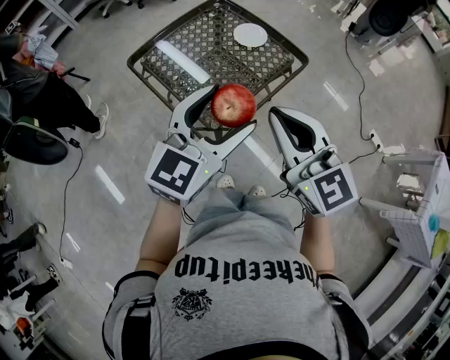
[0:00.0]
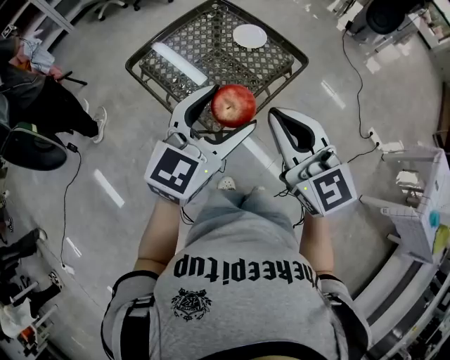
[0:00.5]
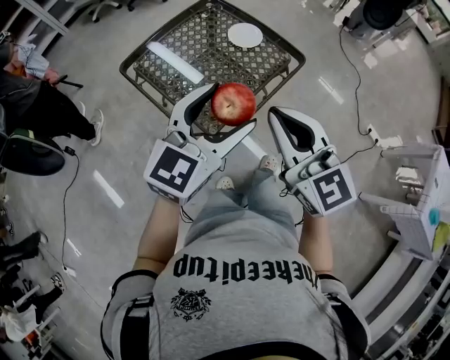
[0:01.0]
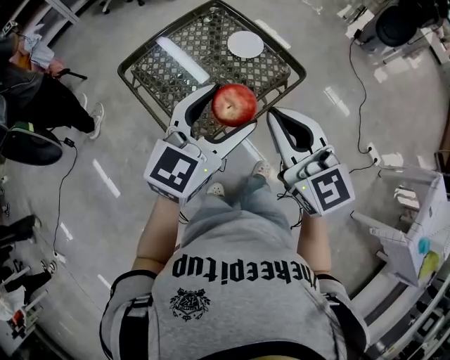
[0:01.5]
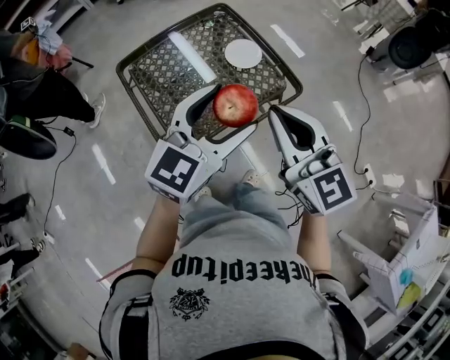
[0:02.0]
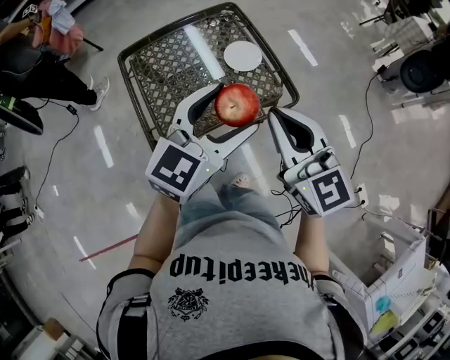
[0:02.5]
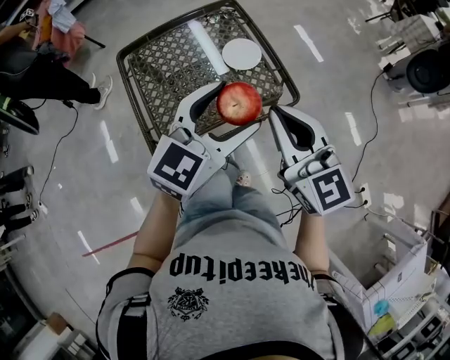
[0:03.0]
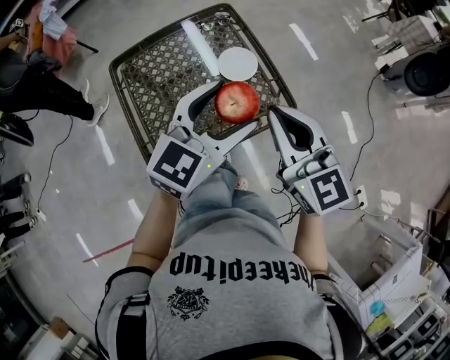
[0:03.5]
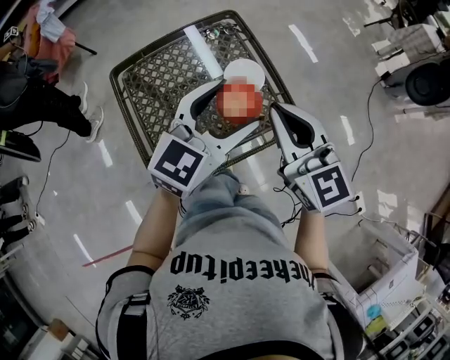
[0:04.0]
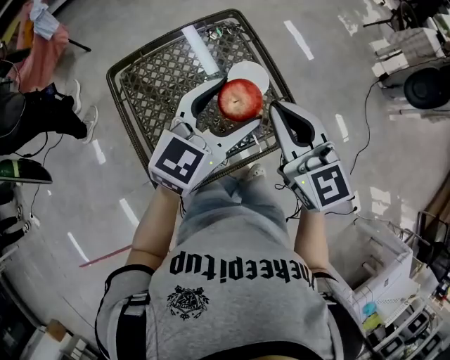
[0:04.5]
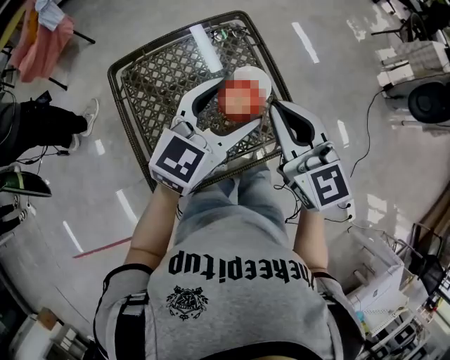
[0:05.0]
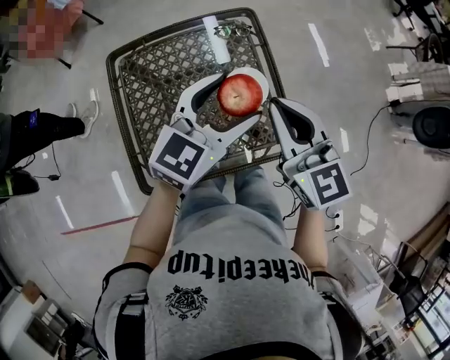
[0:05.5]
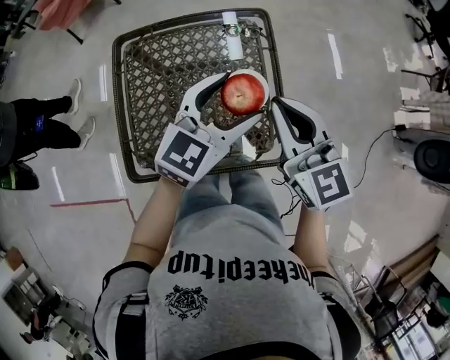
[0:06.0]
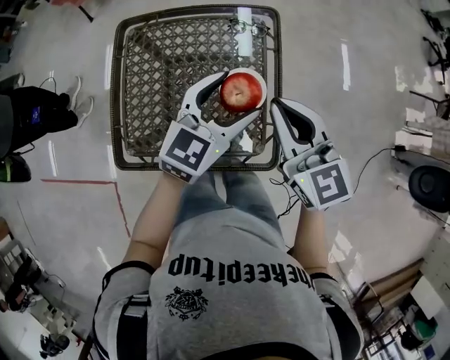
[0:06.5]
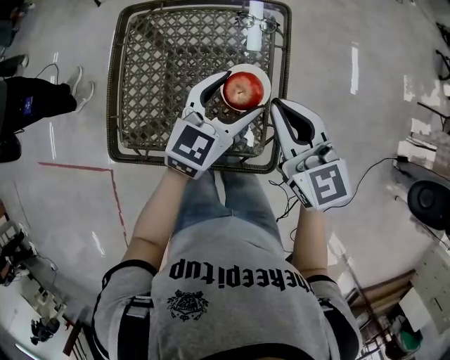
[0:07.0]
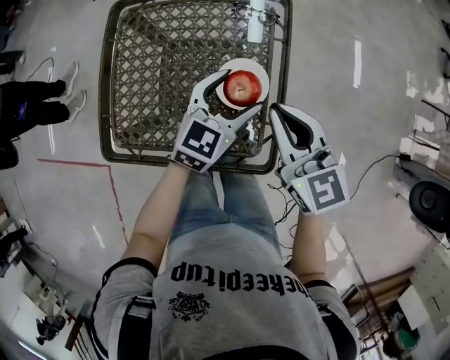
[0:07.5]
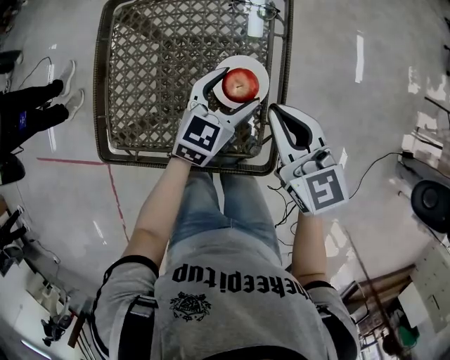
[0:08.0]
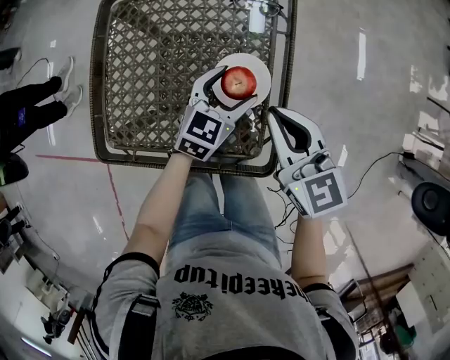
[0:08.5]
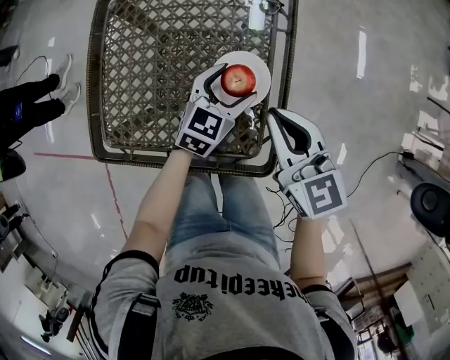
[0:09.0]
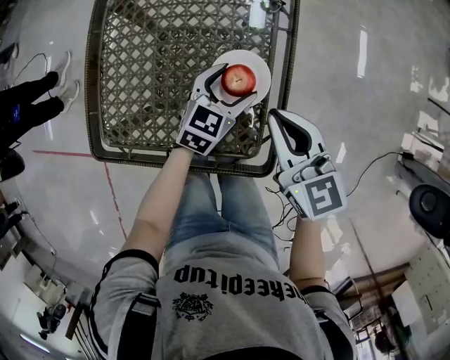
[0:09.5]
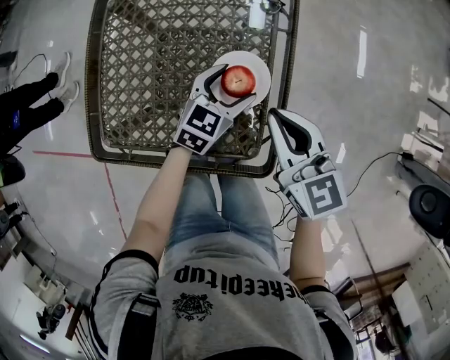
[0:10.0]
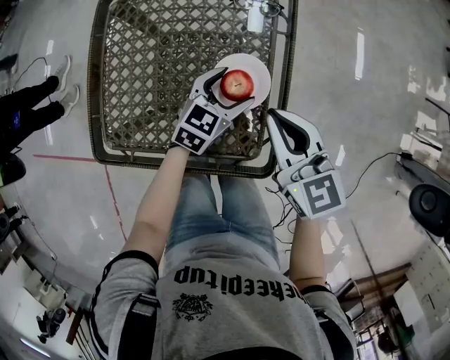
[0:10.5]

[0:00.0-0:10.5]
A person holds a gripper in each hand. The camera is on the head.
0.0 to 2.0 s: The two grippers go some 20 cm forward and to the right.
2.0 to 4.0 s: The grippers both shift forward by approximately 15 cm.
4.0 to 6.5 s: The left gripper changes place by approximately 15 cm, and rotates roughly 30 degrees. The right gripper shifts by some 15 cm, and turns by roughly 30 degrees.
6.5 to 8.5 s: The right gripper travels downward by roughly 10 cm. Meanwhile the left gripper is displaced downward by about 20 cm.
8.5 to 10.5 s: The grippers make only small movements.

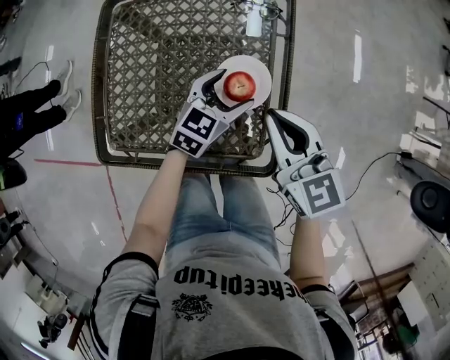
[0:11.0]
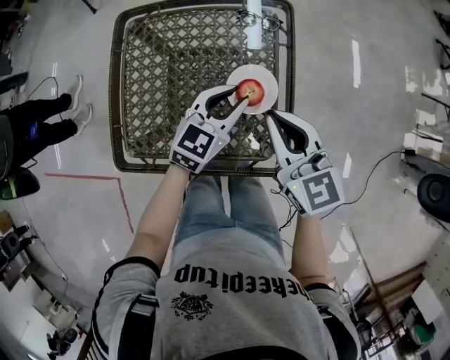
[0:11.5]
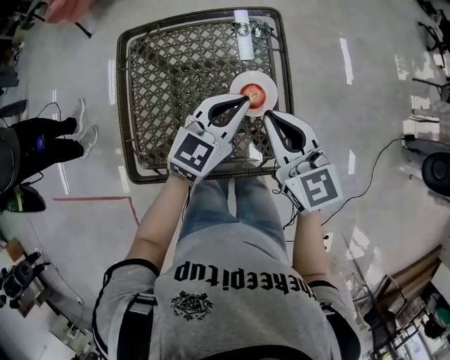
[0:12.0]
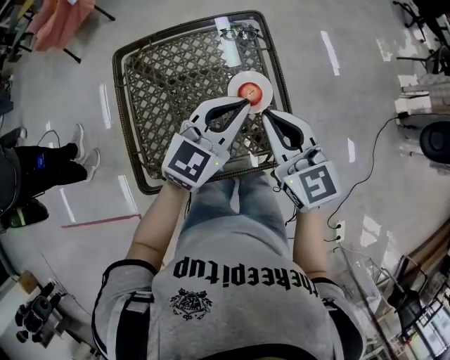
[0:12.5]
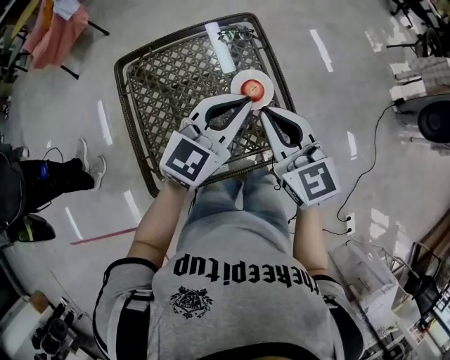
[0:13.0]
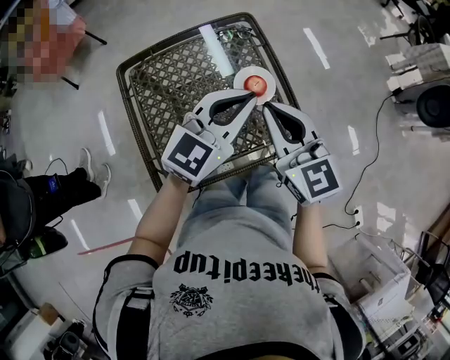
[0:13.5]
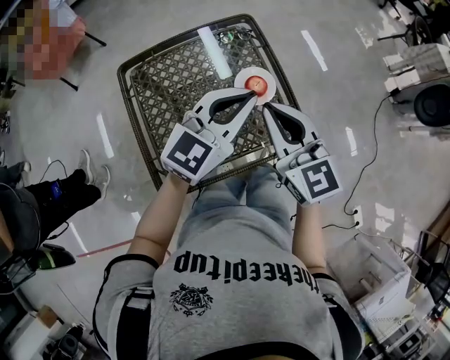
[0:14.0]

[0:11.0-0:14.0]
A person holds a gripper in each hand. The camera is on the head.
11.0 to 12.5 s: The left gripper goes roughly 20 cm upward, changes its angle by about 30 degrees, and closes up, while the right gripper shifts approximately 10 cm upward.
12.5 to 14.0 s: The left gripper moves approximately 5 cm; the right gripper travels backward by about 5 cm.

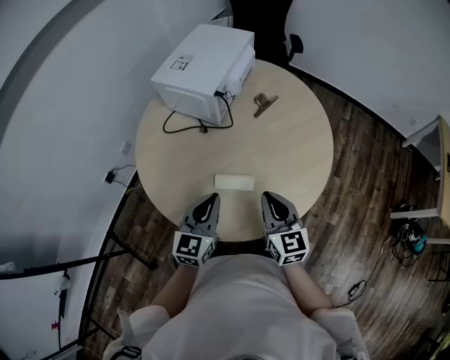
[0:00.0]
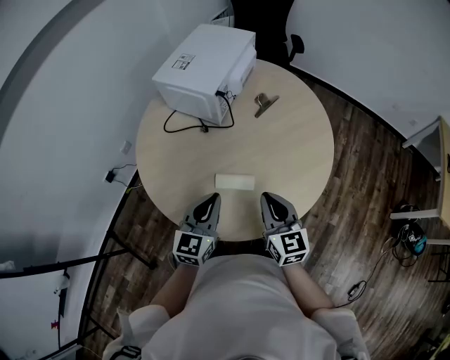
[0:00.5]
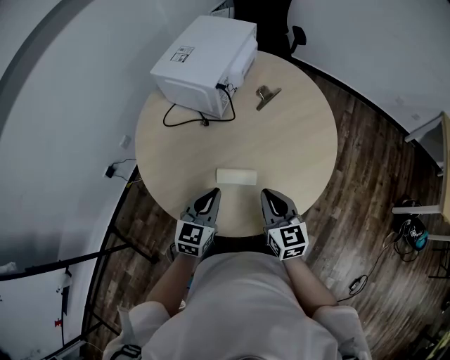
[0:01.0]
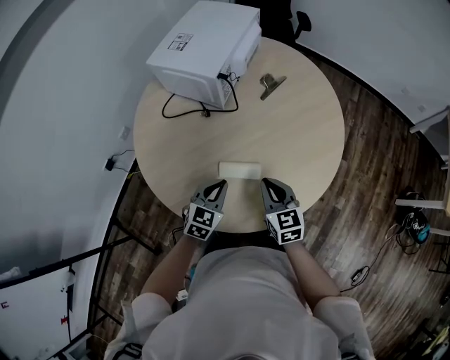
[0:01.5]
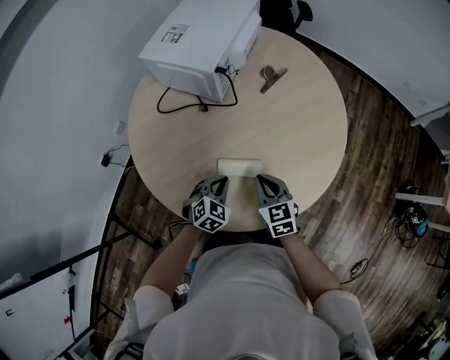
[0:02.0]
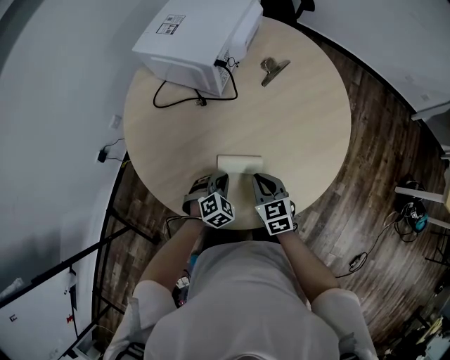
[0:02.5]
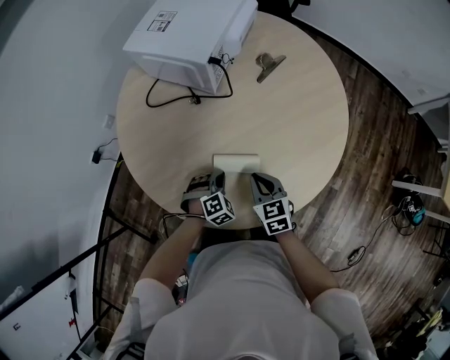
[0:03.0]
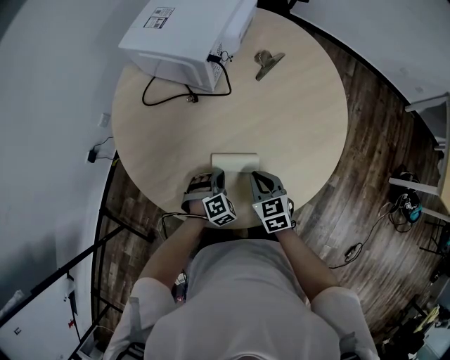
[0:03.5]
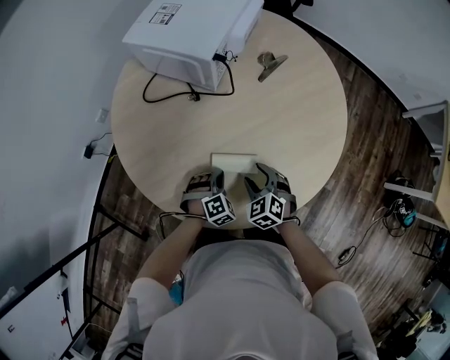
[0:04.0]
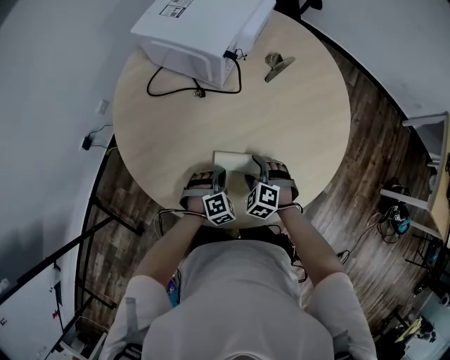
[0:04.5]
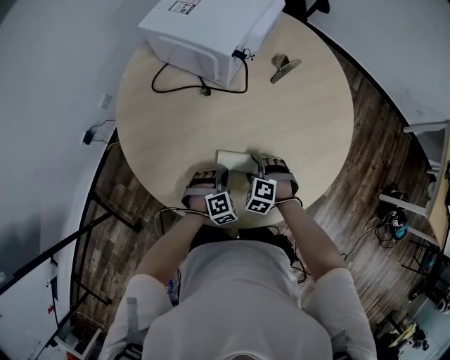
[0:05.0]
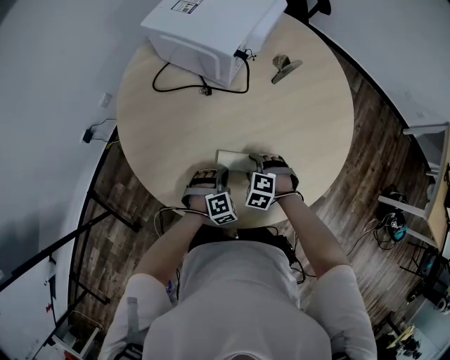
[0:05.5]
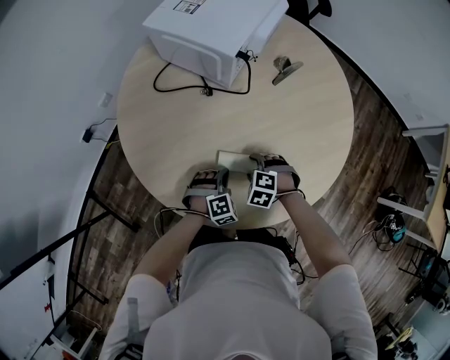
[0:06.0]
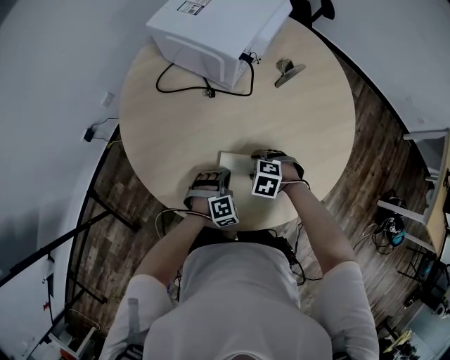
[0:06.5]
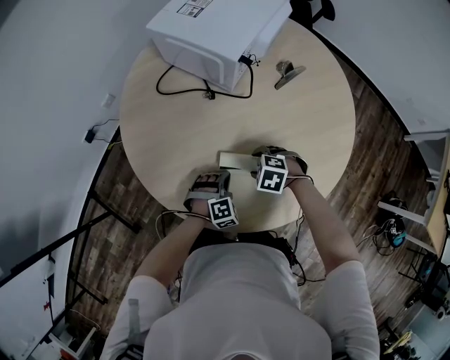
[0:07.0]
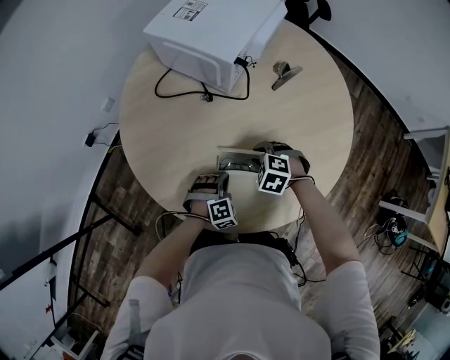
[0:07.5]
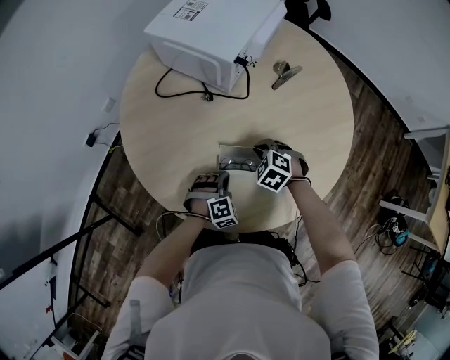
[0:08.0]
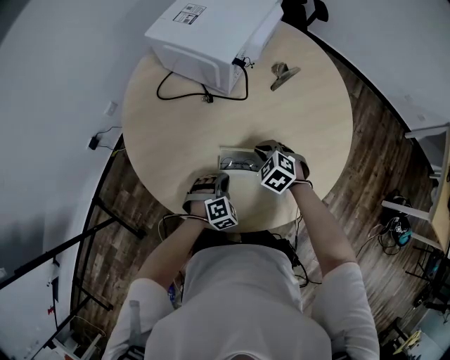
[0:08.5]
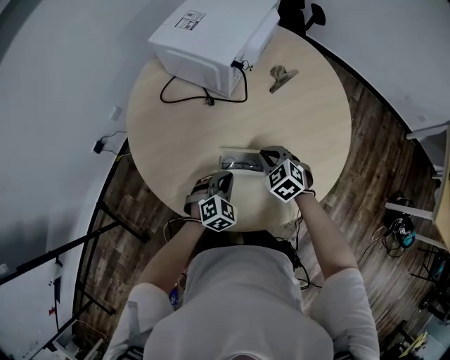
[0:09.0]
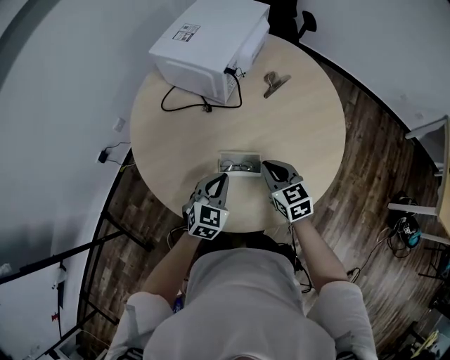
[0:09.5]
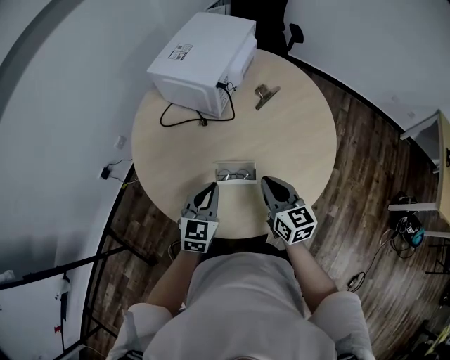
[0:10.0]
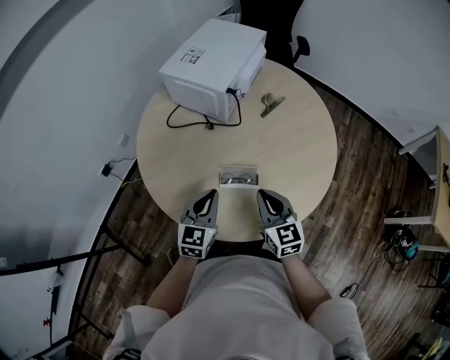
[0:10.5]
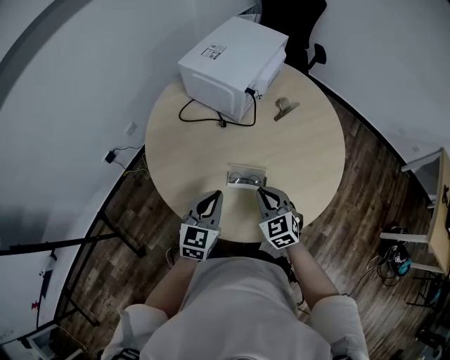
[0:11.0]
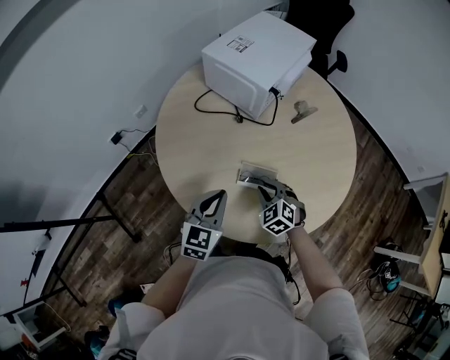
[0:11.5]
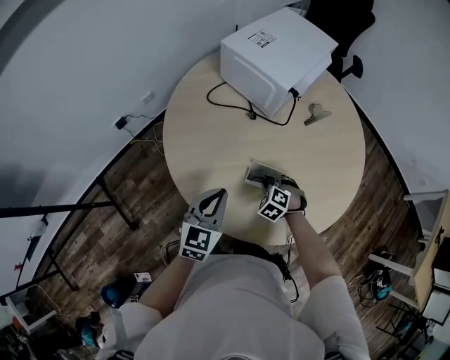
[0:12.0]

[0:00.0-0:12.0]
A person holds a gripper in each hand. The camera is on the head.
0.0 to 2.0 s: Both grippers travel together downward, approximately 15 cm. The right gripper swivels about 20 degrees. Meanwhile the left gripper points its fingers approximately 30 degrees further downward.
2.0 to 4.0 s: Both grippers travel together downward, some 10 cm. The left gripper changes its angle by some 30 degrees; the right gripper changes its angle by some 30 degrees, and opens up.
4.0 to 6.0 s: The right gripper ends up some 5 cm from where it was, and changes its angle by some 40 degrees.
6.0 to 8.0 s: The right gripper changes place by about 10 cm, and closes its fingers.
8.0 to 10.0 s: The right gripper goes roughly 20 cm upward and backward, and angles its fingers upward, by some 50 degrees. Meanwhile the left gripper moves upward, about 25 cm, and angles its fingers upward, by some 30 degrees.
10.0 to 12.0 s: The right gripper goes approximately 20 cm downward and to the left, and rolls counterclockwise, seen from behind, by some 70 degrees. The left gripper goes about 10 cm to the left.

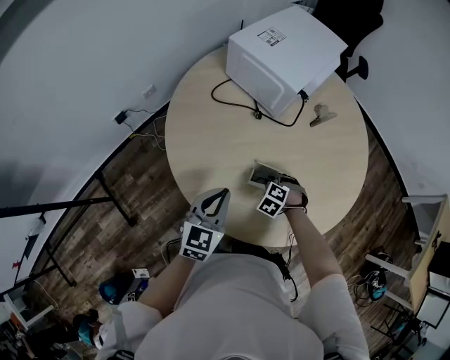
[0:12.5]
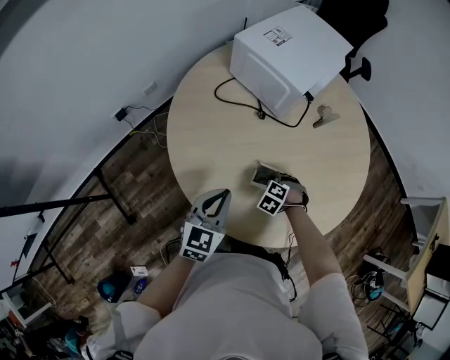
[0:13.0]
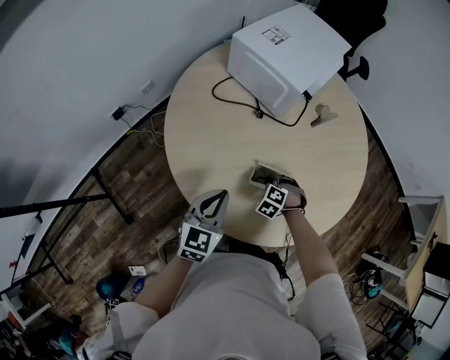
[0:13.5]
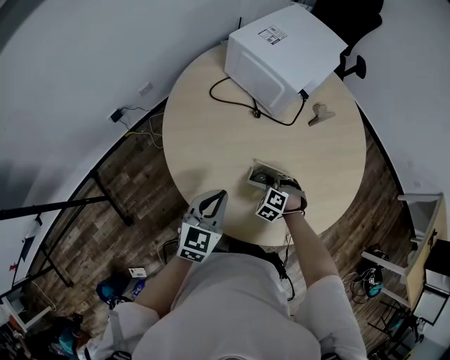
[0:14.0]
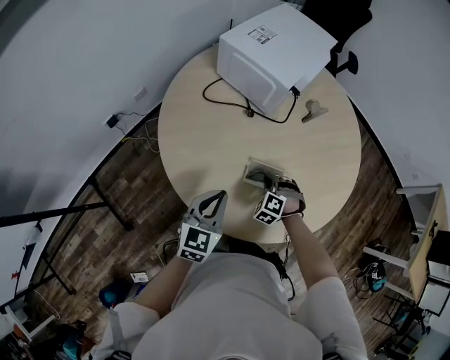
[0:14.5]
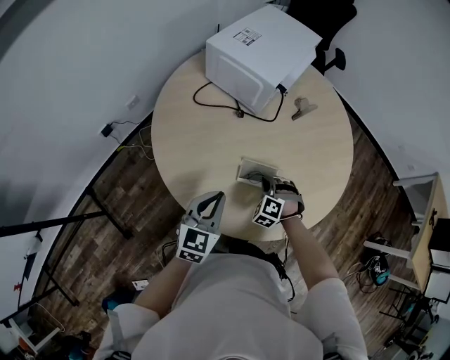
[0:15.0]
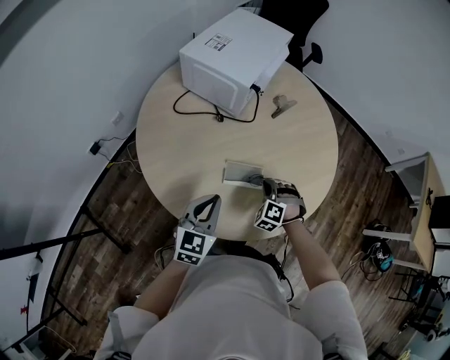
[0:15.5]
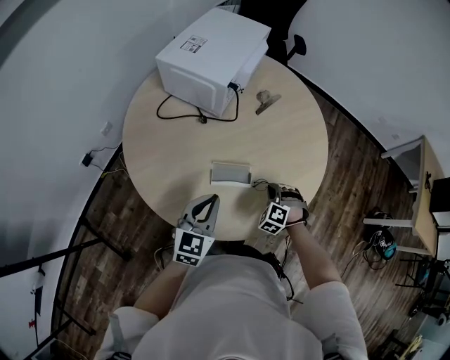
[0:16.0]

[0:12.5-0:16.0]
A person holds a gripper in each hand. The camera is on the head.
12.5 to 14.5 s: The grippers make only small movements.
14.5 to 16.0 s: The left gripper moves to the right, approximately 10 cm, while the right gripper shifts roughly 15 cm to the right.
